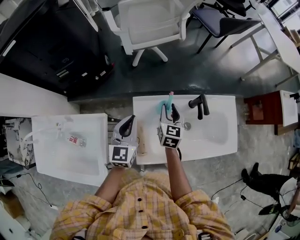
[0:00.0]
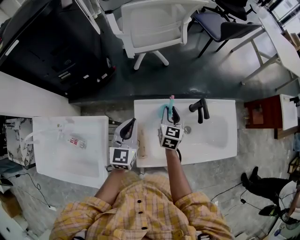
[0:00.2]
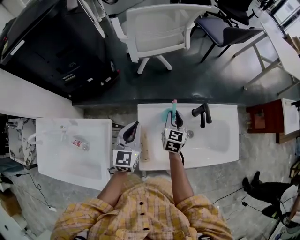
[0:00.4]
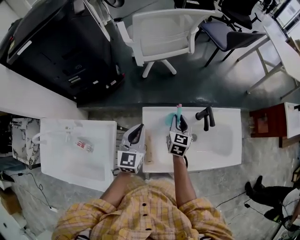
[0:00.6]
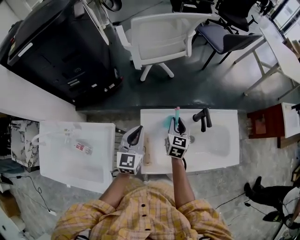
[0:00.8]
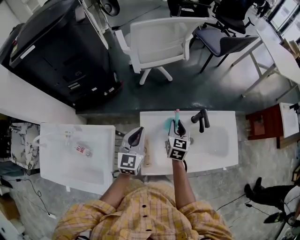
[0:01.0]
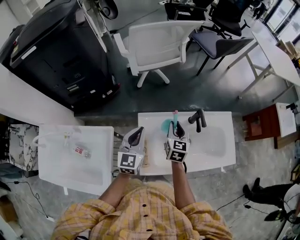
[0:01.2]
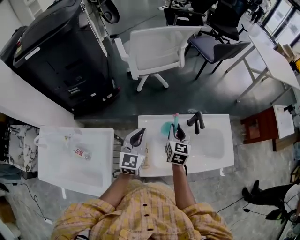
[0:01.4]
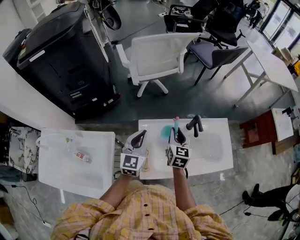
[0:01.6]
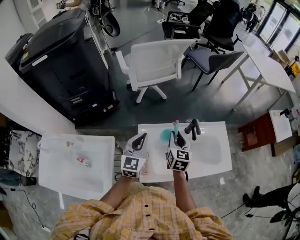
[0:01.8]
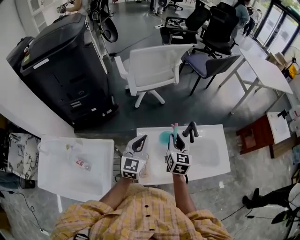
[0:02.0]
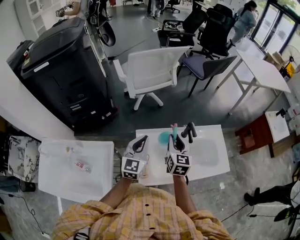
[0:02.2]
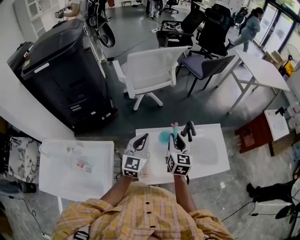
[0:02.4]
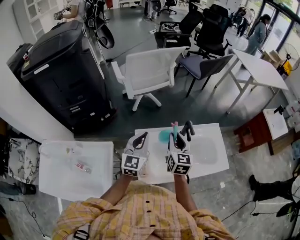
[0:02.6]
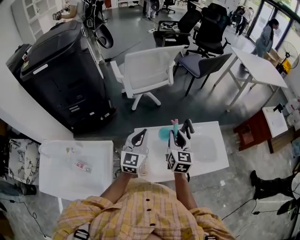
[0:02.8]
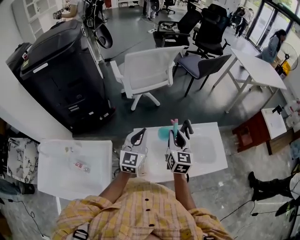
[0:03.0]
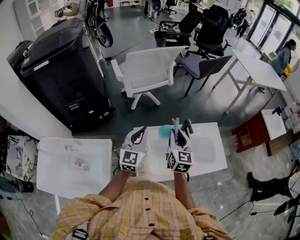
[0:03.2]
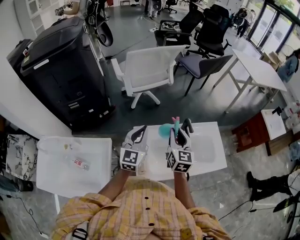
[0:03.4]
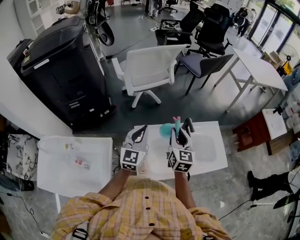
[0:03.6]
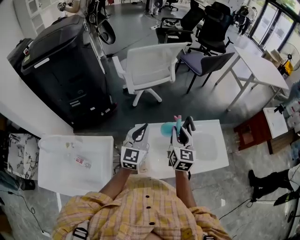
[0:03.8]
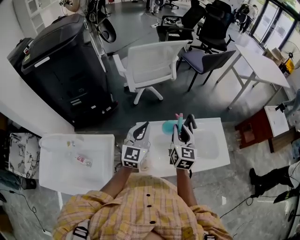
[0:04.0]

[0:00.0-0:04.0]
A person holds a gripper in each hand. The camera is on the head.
0:00.0 to 0:01.4: The right gripper shifts about 5 cm upward.
0:01.4 to 0:02.6: The left gripper travels upward by approximately 5 cm; the right gripper is displaced upward by roughly 10 cm.
0:02.6 to 0:04.0: The grippers move only a little.

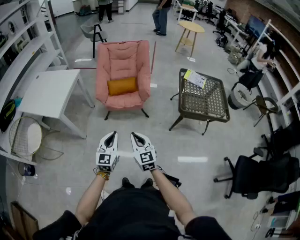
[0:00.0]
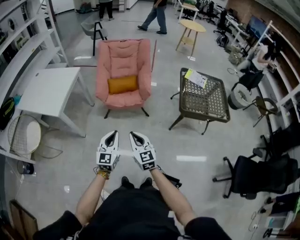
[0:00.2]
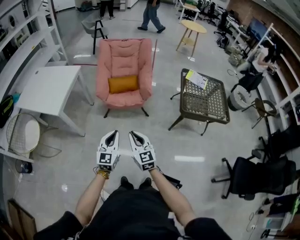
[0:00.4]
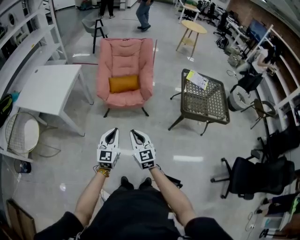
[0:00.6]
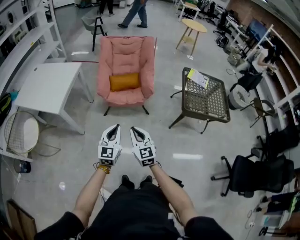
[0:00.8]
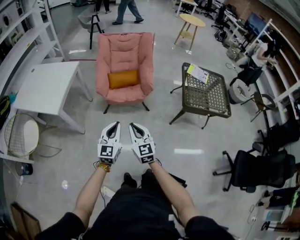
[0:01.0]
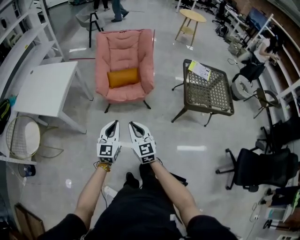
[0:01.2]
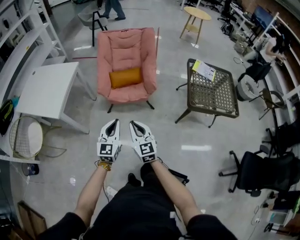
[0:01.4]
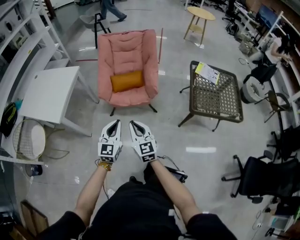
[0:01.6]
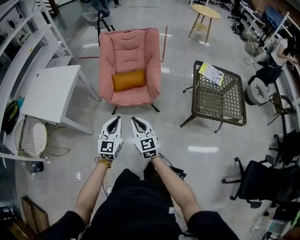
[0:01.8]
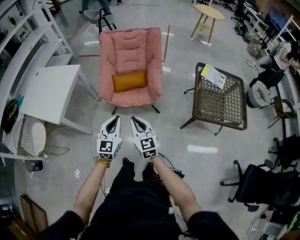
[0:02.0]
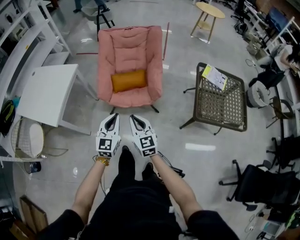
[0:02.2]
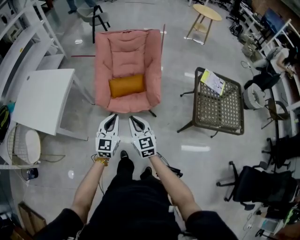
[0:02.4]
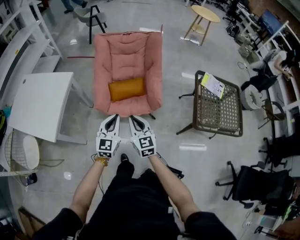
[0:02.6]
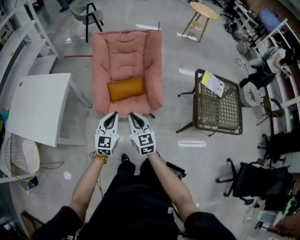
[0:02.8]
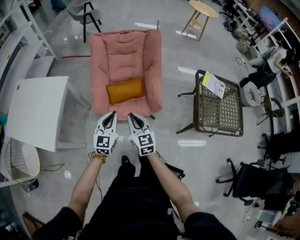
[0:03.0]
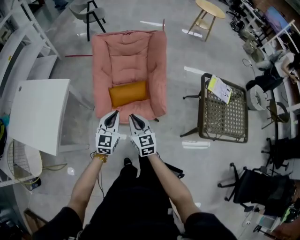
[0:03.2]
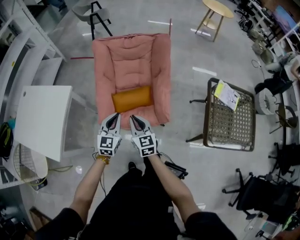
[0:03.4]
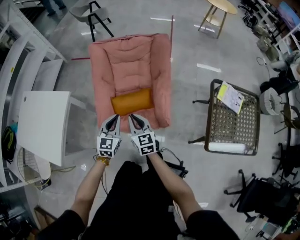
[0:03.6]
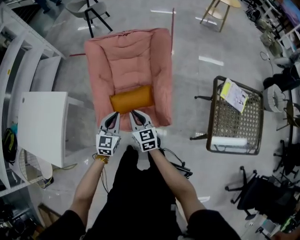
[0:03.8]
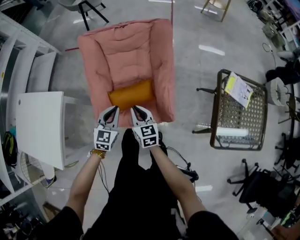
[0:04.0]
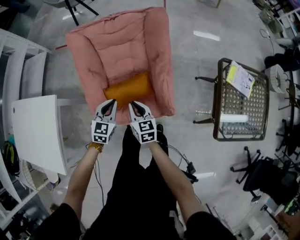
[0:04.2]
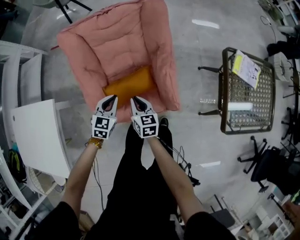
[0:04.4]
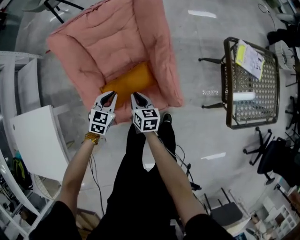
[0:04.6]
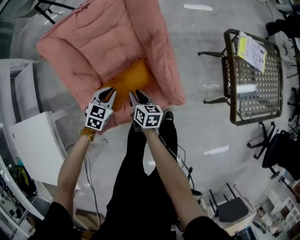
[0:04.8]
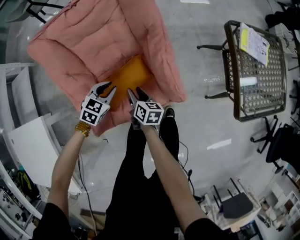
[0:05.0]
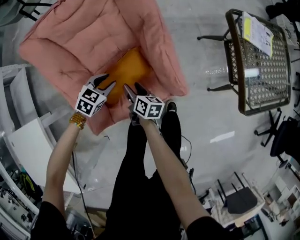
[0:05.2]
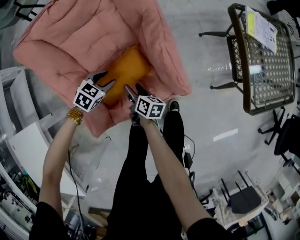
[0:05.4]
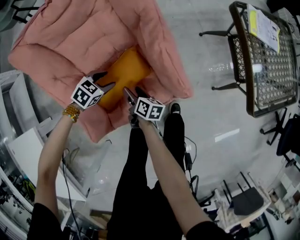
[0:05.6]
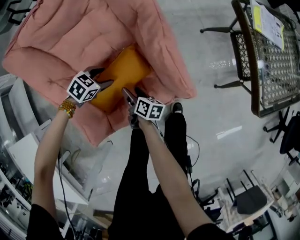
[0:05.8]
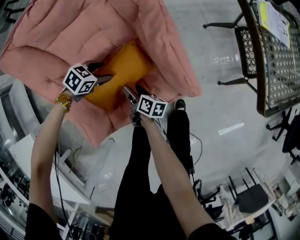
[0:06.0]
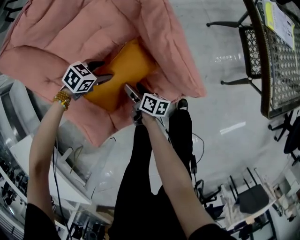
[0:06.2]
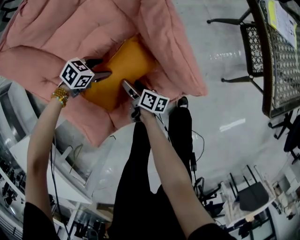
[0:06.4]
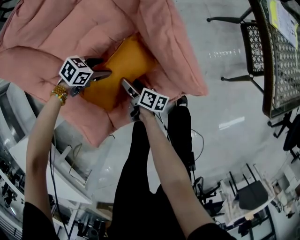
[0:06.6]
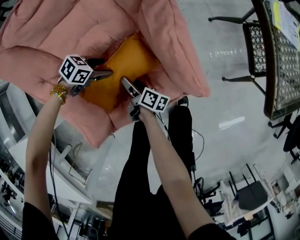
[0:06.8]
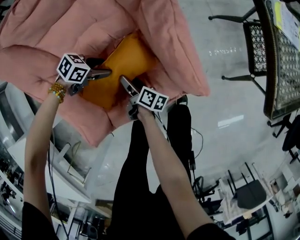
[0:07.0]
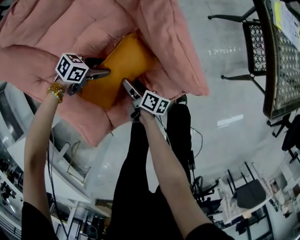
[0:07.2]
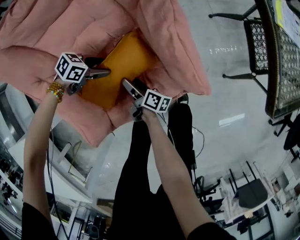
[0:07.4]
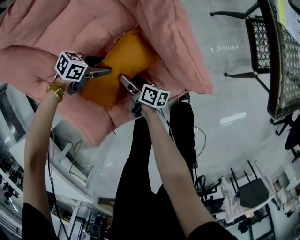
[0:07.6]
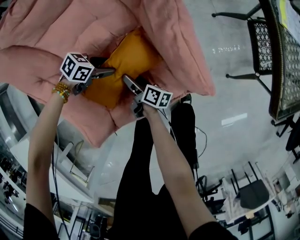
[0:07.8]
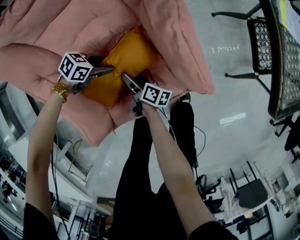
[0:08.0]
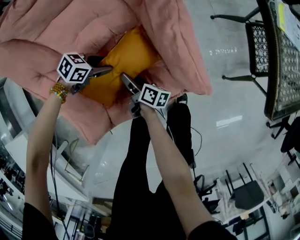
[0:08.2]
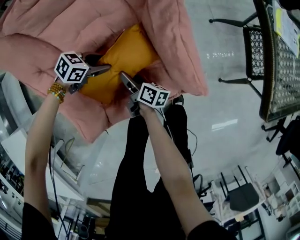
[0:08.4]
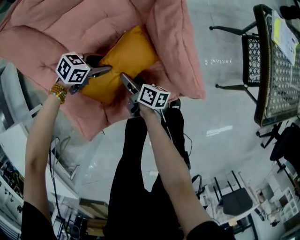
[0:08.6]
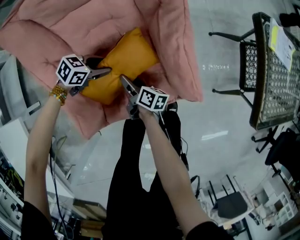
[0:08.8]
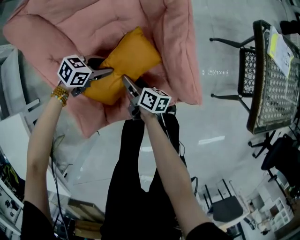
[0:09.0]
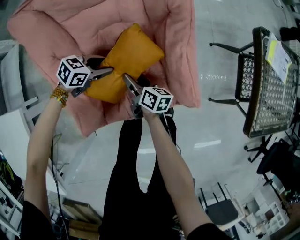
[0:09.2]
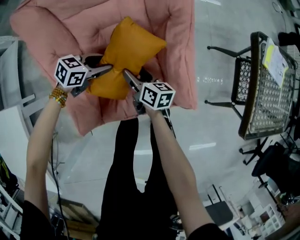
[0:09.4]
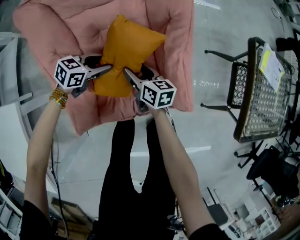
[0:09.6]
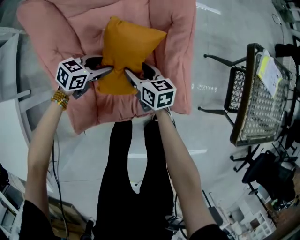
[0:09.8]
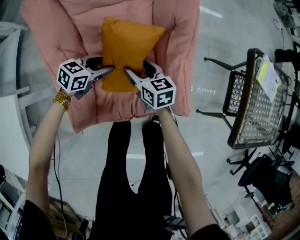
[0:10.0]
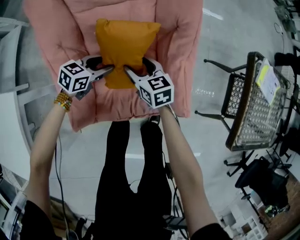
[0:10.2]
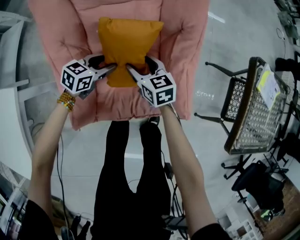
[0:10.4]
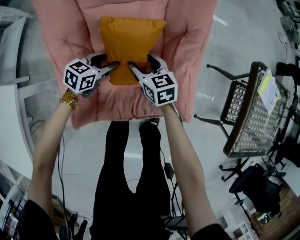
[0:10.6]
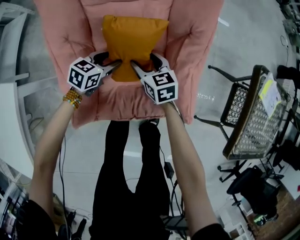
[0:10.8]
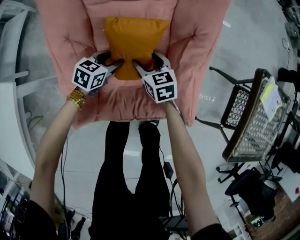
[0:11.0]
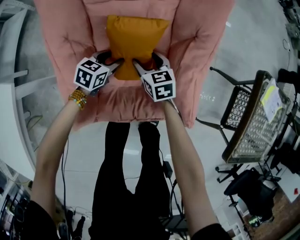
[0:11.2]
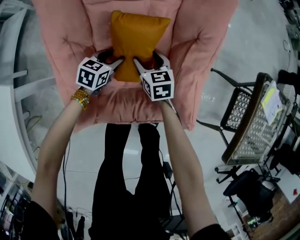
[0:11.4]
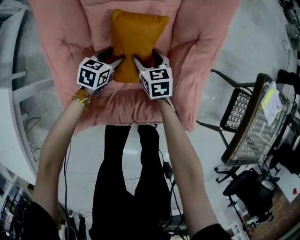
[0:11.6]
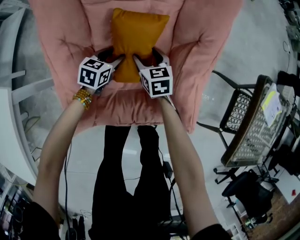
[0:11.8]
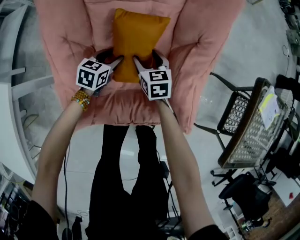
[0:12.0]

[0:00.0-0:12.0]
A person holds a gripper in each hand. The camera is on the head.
0:00.0 to 0:01.6: The two grippers go about 15 cm forward.
0:01.6 to 0:03.0: The two grippers go about 30 cm forward.
0:03.0 to 0:04.4: Both grippers move forward and downward, about 40 cm. The left gripper swivels some 30 degrees. The right gripper changes its angle by approximately 30 degrees.
0:04.4 to 0:06.0: The two grippers go roughly 30 cm downward. The left gripper swivels approximately 50 degrees, and opens up; the right gripper rolls clockwise, seen from behind, by about 50 degrees, and opens.
0:06.0 to 0:07.6: The right gripper changes place by roughly 5 cm. Meanwhile the left gripper moves roughly 5 cm, and changes its angle by about 20 degrees.
0:07.6 to 0:09.0: Both grippers move upward, approximately 10 cm.
0:09.0 to 0:10.4: The right gripper shifts approximately 15 cm upward and forward, and rolls counterclockwise, seen from behind, by roughly 60 degrees. Meanwhile the left gripper is displaced upward by some 5 cm, and rotates some 30 degrees.
0:10.4 to 0:12.0: Both grippers travel together downward and forward, some 10 cm. The left gripper changes its angle by approximately 20 degrees.

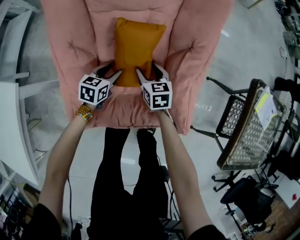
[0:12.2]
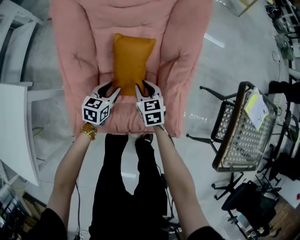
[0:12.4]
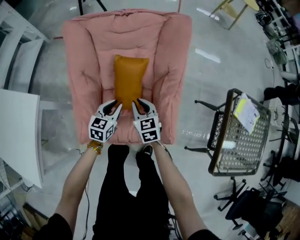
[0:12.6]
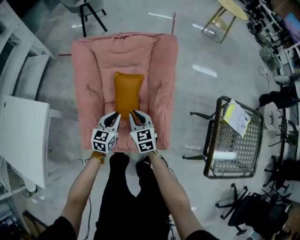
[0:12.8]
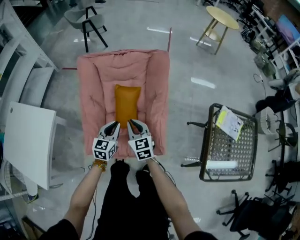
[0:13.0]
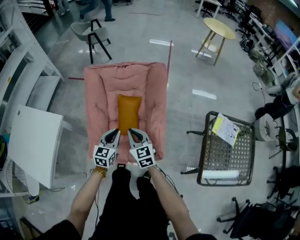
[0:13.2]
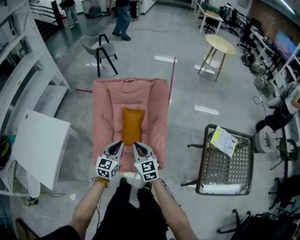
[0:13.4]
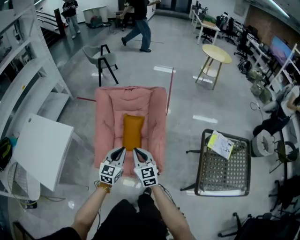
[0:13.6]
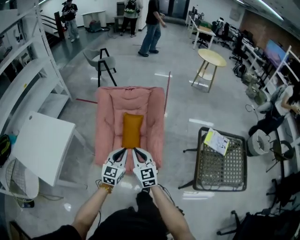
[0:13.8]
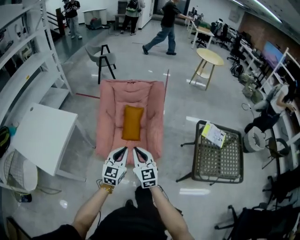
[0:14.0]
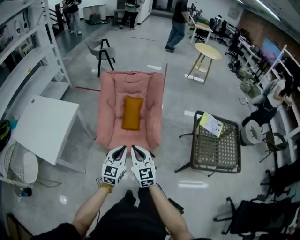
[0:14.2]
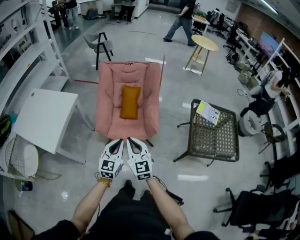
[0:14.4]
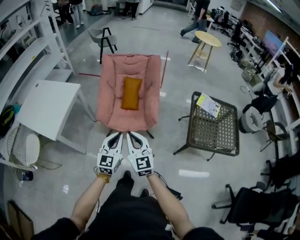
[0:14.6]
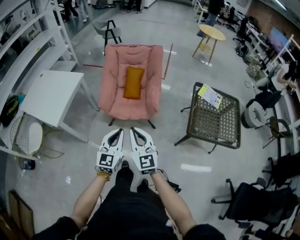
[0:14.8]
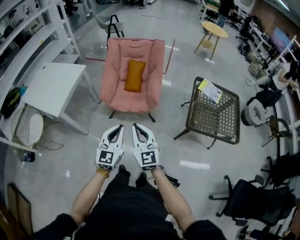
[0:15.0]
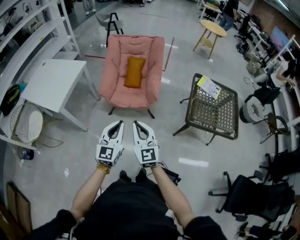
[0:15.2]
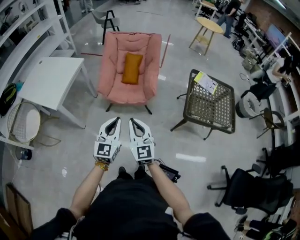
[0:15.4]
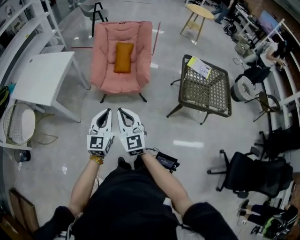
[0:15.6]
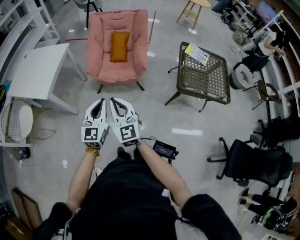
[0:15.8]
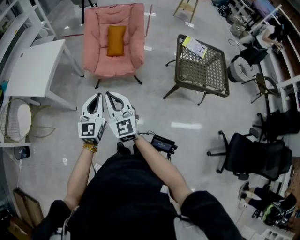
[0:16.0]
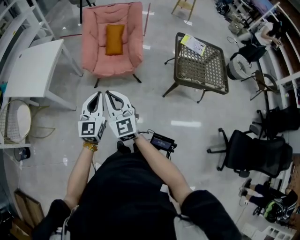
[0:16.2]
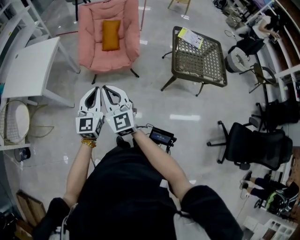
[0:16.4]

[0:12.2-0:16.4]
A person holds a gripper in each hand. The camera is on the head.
0:12.2 to 0:13.6: Both grippers travel together upward and backward, approximately 50 cm. The right gripper rotates approximately 30 degrees, and closes; the left gripper changes its angle by about 40 degrees, and closes its fingers.
0:13.6 to 0:15.0: The pair of grippers is taken backward, about 50 cm.
0:15.0 to 0:16.4: The left gripper is displaced backward and to the left by roughly 10 cm. Meanwhile the right gripper heads to the left and backward, covering approximately 10 cm.

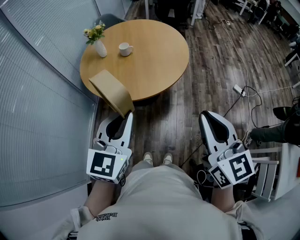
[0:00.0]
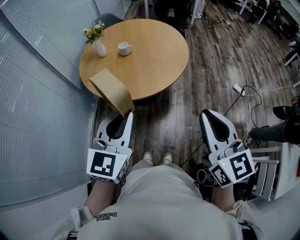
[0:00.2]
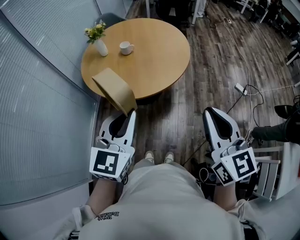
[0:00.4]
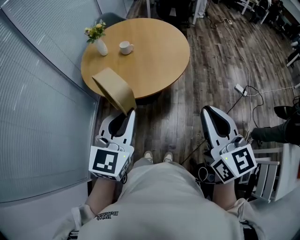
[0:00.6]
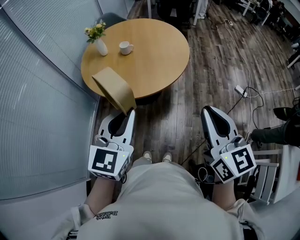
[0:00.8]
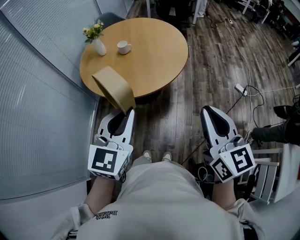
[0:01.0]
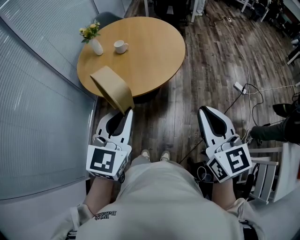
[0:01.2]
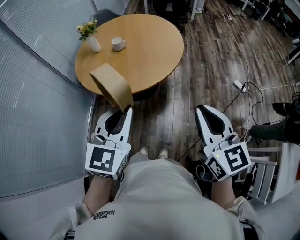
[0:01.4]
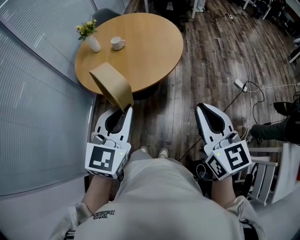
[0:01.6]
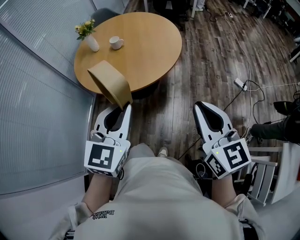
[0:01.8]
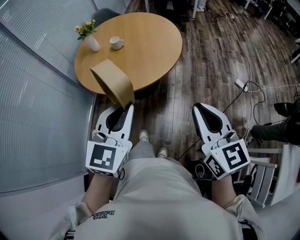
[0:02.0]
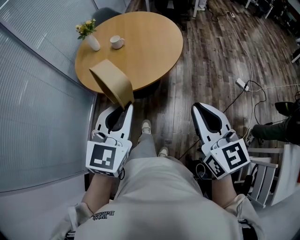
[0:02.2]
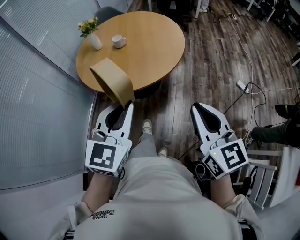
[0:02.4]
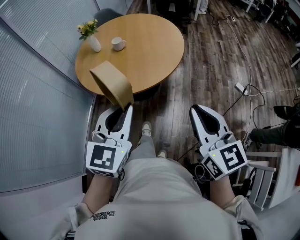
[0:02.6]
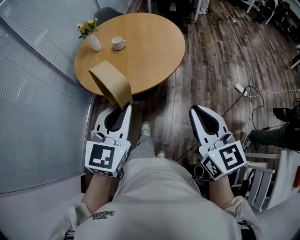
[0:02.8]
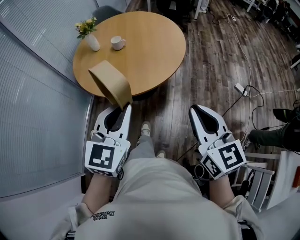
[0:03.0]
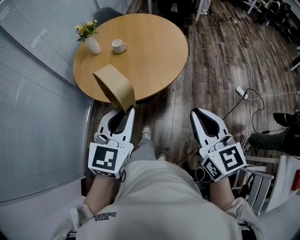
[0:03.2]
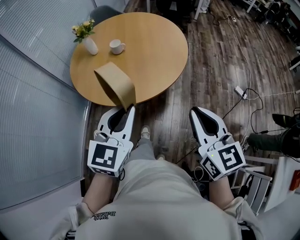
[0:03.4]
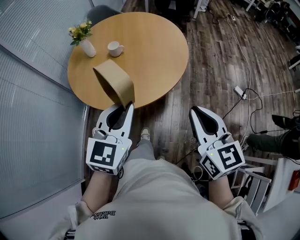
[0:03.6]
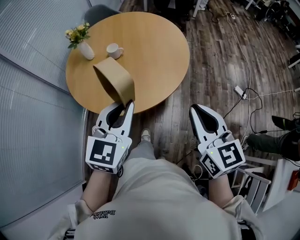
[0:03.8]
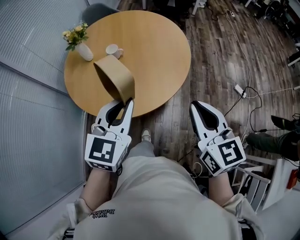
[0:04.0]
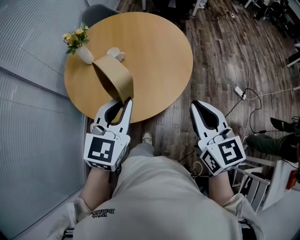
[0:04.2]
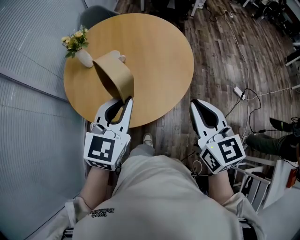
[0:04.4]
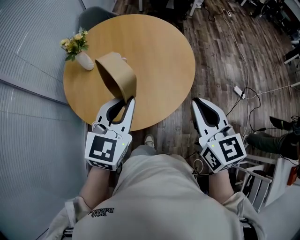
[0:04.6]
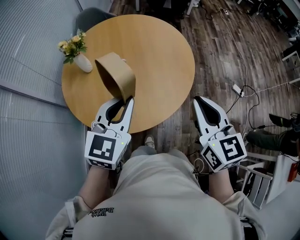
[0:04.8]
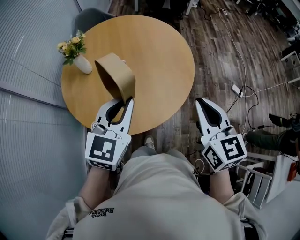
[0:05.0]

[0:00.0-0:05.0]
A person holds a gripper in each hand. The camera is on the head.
0:00.0 to 0:01.6: Both grippers move to the right, some 10 cm.
0:01.6 to 0:03.4: The two grippers go about 10 cm forward.
0:03.4 to 0:05.0: The grippers both shift forward and to the left by some 20 cm.
